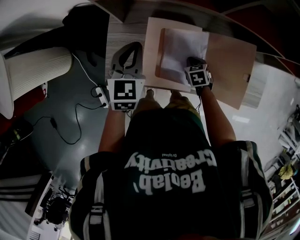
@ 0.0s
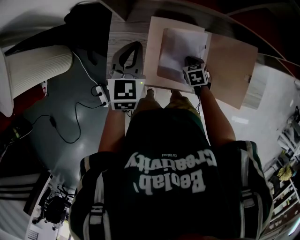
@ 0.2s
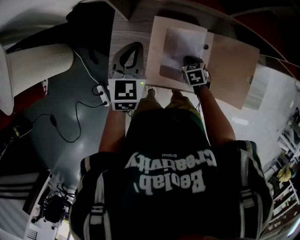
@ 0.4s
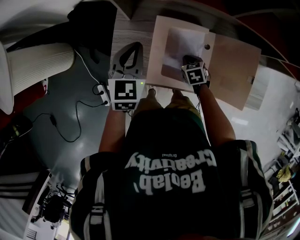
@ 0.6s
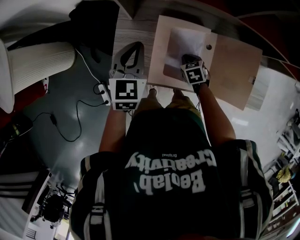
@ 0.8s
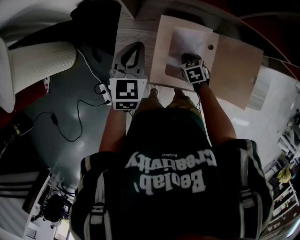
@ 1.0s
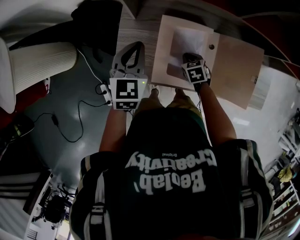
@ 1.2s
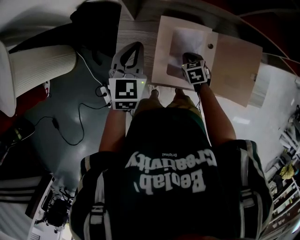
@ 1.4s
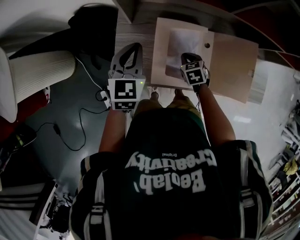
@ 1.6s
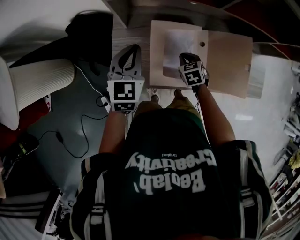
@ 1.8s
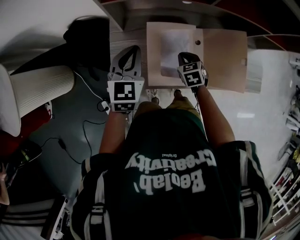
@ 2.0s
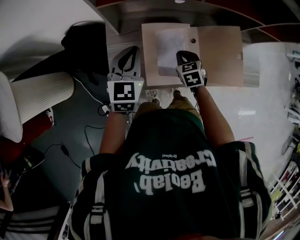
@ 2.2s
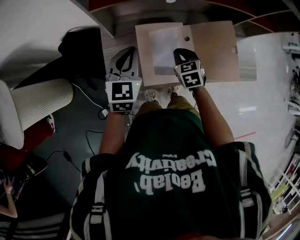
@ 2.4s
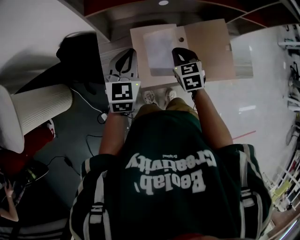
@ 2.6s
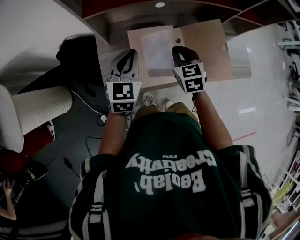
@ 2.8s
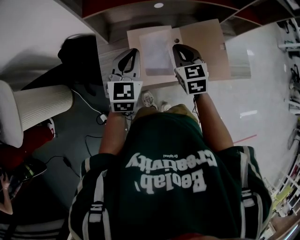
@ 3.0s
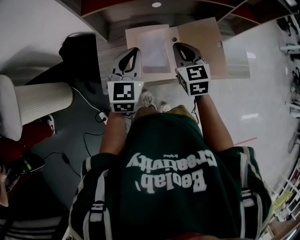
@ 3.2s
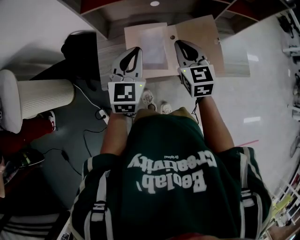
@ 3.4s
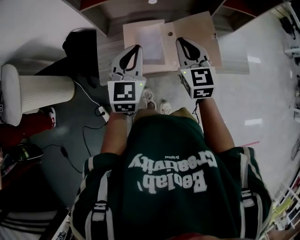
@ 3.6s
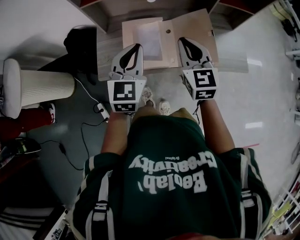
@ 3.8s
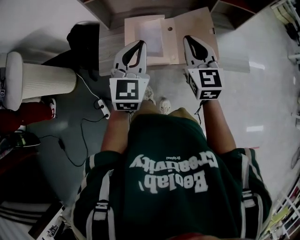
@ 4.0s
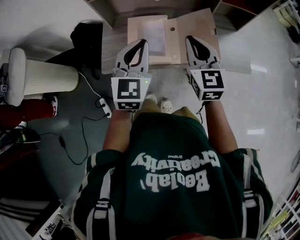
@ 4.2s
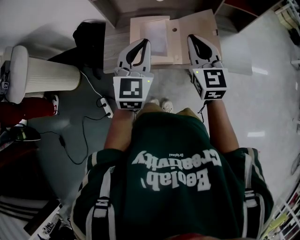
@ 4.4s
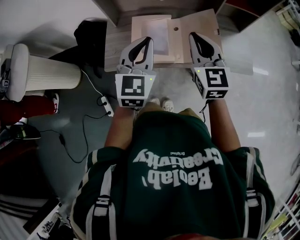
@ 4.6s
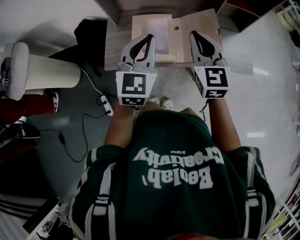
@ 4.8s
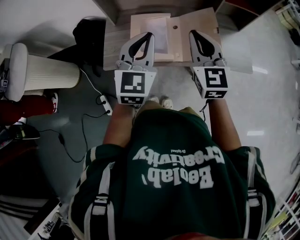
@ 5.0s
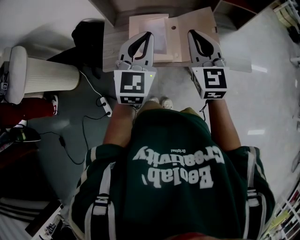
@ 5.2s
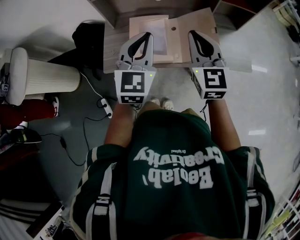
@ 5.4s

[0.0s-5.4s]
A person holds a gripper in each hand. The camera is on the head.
0.0s to 1.4s: The grippers both shift to the left by approximately 5 cm.
1.4s to 2.8s: The right gripper moves upward, some 20 cm, and turns by approximately 30 degrees, while the left gripper goes approximately 10 cm to the right and upward.
2.8s to 4.0s: The right gripper travels backward, upward and to the right by some 25 cm, and swivels roughly 30 degrees. Meanwhile the left gripper goes about 25 cm backward, to the right and upward.
4.0s to 5.4s: The right gripper moves about 5 cm.

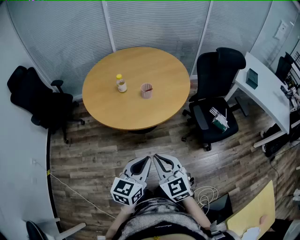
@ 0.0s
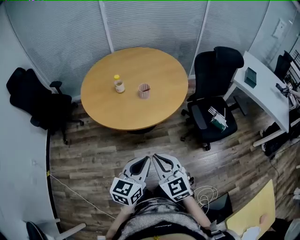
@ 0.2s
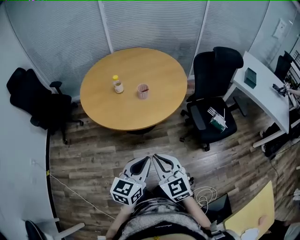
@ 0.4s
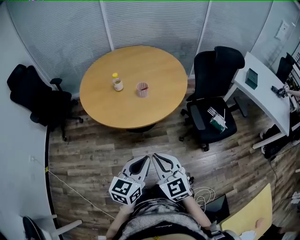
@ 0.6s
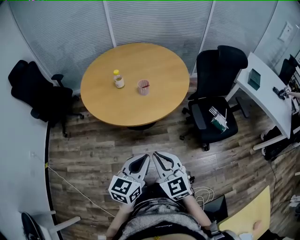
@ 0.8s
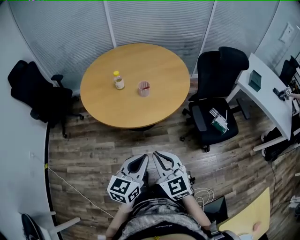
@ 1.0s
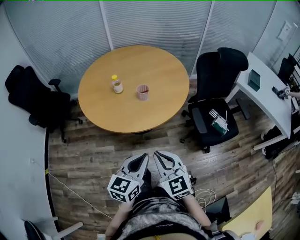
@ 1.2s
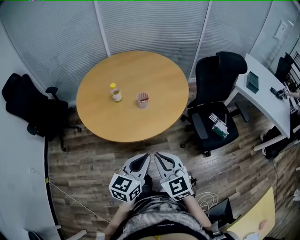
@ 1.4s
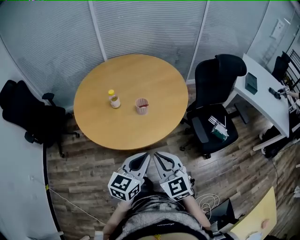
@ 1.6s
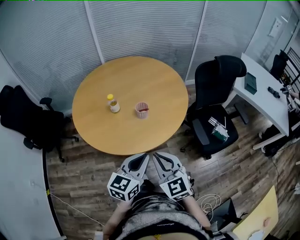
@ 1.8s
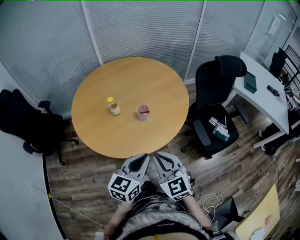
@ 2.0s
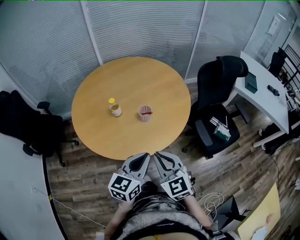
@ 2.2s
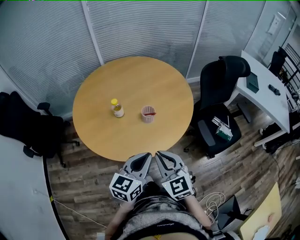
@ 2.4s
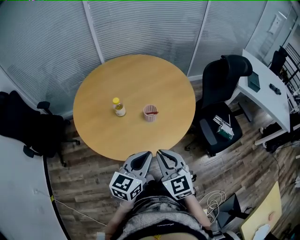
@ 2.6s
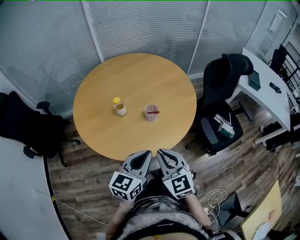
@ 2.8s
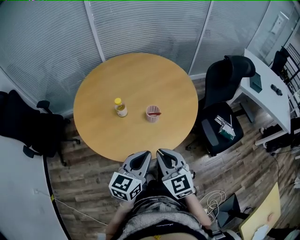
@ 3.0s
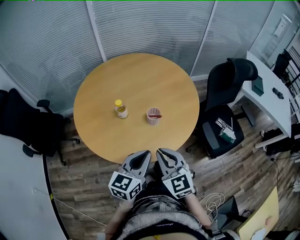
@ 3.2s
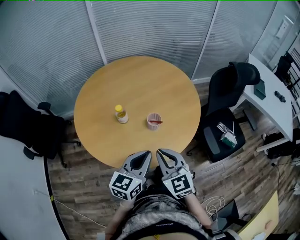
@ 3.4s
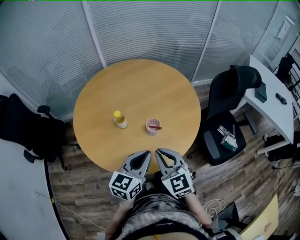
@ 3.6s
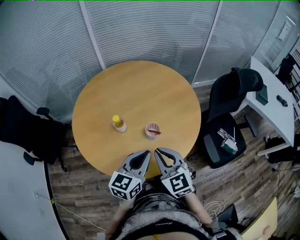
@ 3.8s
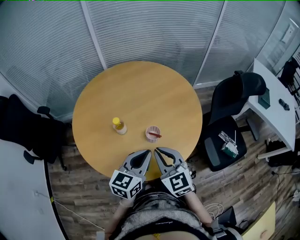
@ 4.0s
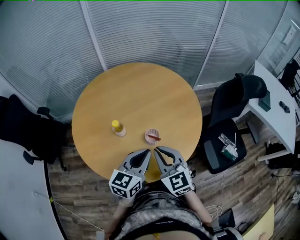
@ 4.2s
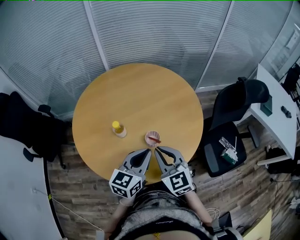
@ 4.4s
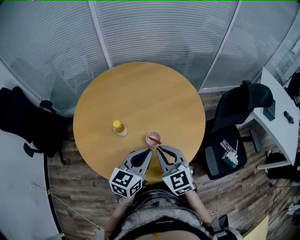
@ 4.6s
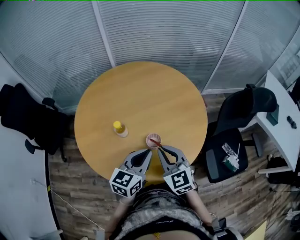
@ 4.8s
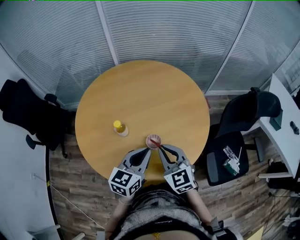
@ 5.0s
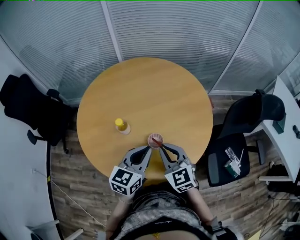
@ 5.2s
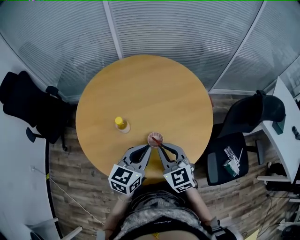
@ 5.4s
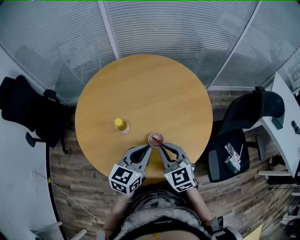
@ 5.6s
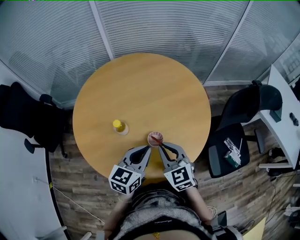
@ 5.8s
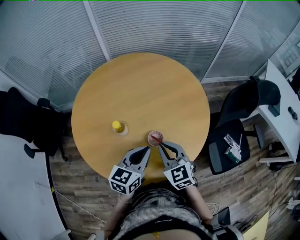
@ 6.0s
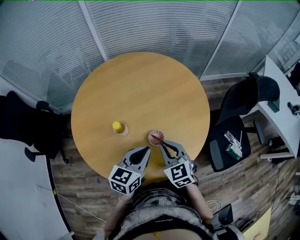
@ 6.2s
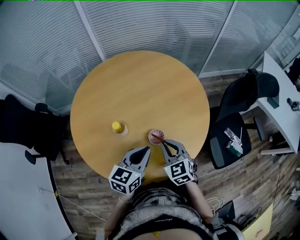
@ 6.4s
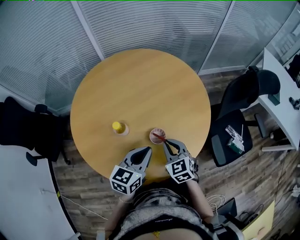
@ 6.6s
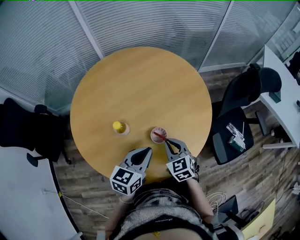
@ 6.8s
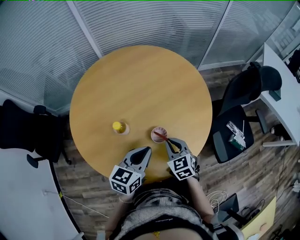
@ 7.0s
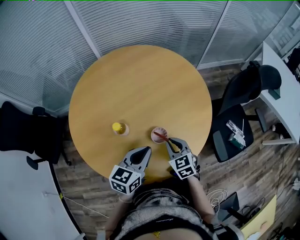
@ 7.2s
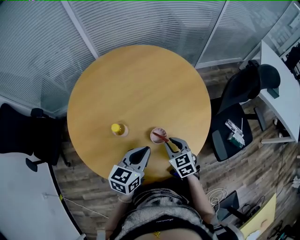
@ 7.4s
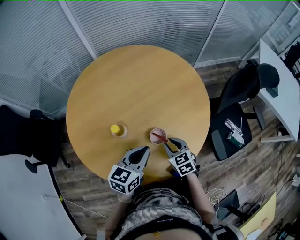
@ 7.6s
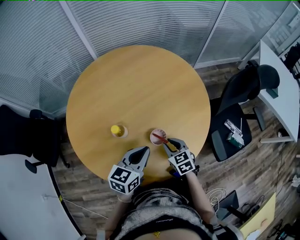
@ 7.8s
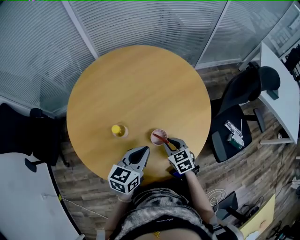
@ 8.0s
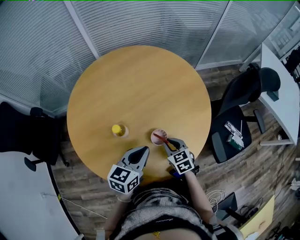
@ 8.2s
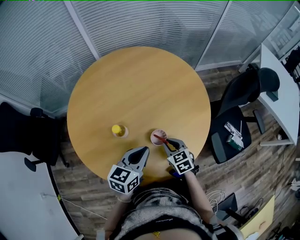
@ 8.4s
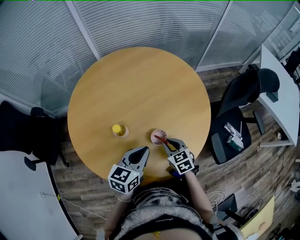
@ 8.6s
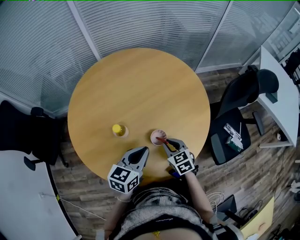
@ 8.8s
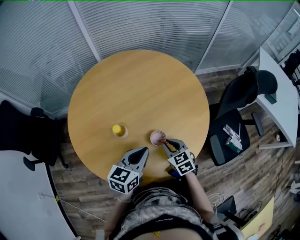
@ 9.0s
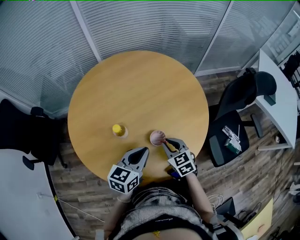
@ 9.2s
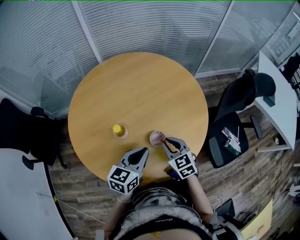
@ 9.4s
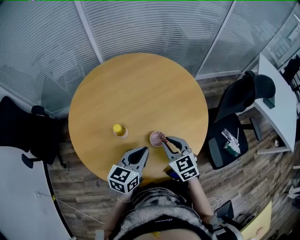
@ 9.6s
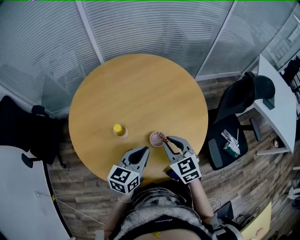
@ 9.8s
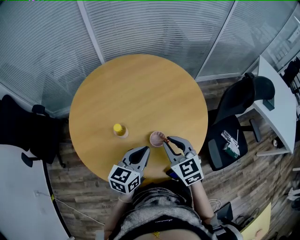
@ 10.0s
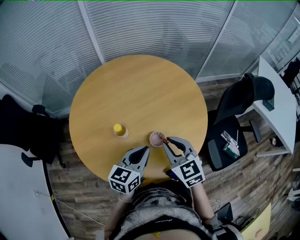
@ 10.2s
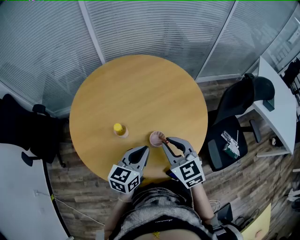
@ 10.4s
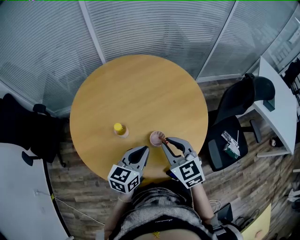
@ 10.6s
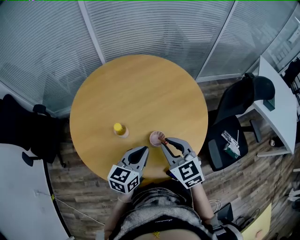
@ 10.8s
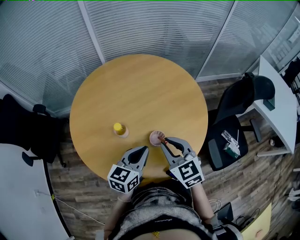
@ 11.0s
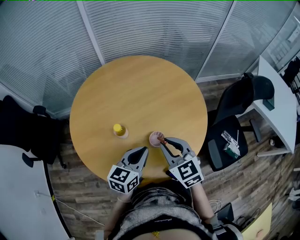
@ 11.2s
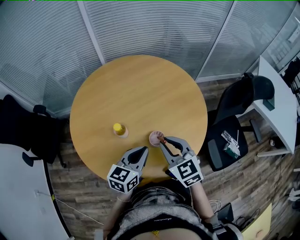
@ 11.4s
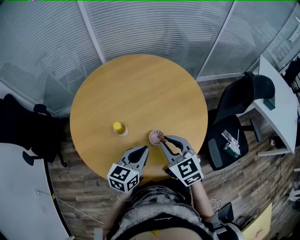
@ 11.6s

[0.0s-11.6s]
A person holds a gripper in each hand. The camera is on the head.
0.0s to 1.4s: Both grippers travel together forward, about 10 cm.
1.4s to 2.8s: Both grippers move forward and to the left, some 15 cm.
2.8s to 4.4s: Both grippers travel together forward, about 20 cm.
4.4s to 5.8s: The left gripper travels forward by roughly 5 cm, while the right gripper shifts approximately 10 cm forward and downward.
5.8s to 7.2s: The right gripper is displaced downward by roughly 10 cm.
7.2s to 8.8s: The grippers stay close to where they were, moving slightly.
8.8s to 10.2s: The right gripper moves upward, some 15 cm.
10.2s to 11.6s: Neither gripper changes place.

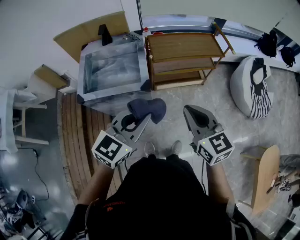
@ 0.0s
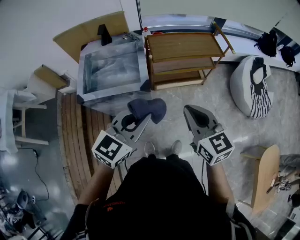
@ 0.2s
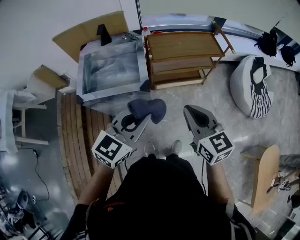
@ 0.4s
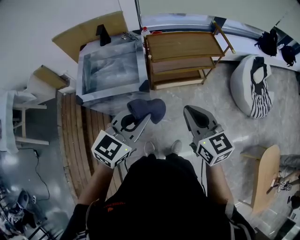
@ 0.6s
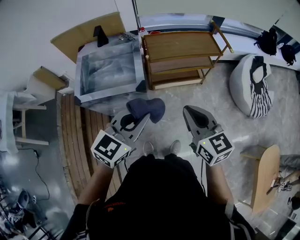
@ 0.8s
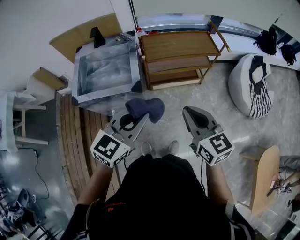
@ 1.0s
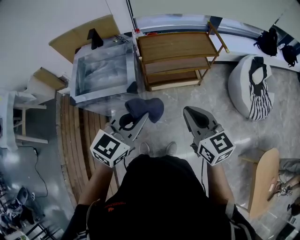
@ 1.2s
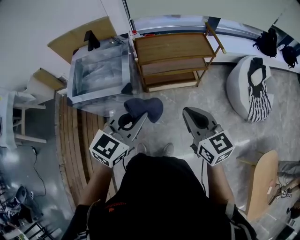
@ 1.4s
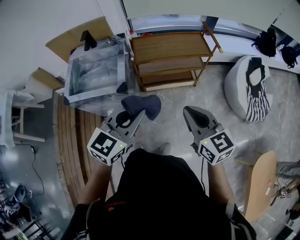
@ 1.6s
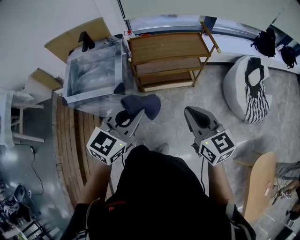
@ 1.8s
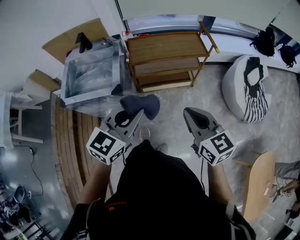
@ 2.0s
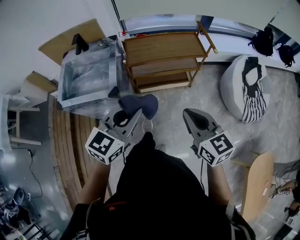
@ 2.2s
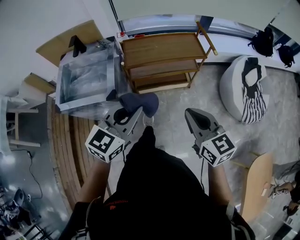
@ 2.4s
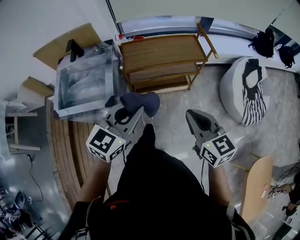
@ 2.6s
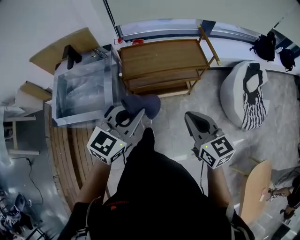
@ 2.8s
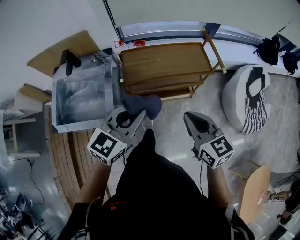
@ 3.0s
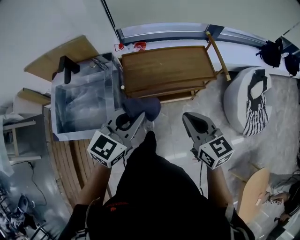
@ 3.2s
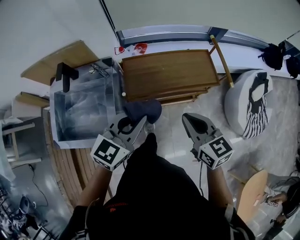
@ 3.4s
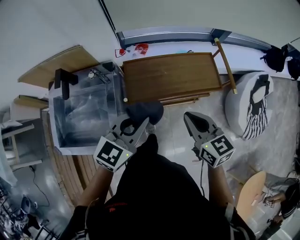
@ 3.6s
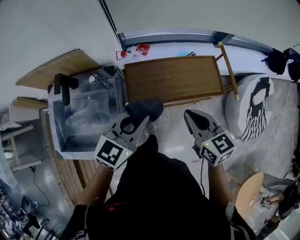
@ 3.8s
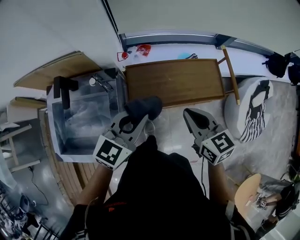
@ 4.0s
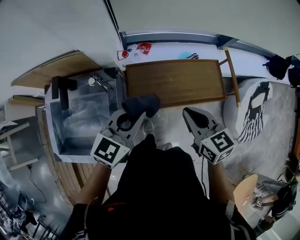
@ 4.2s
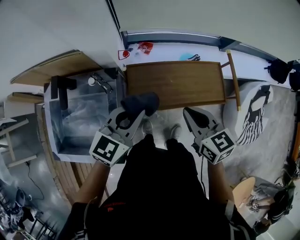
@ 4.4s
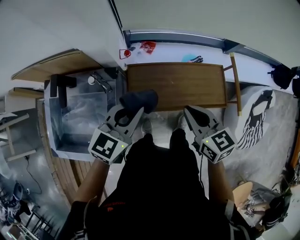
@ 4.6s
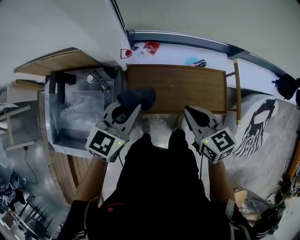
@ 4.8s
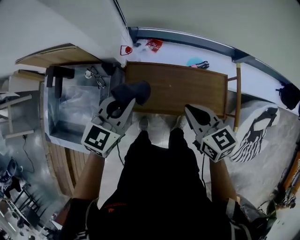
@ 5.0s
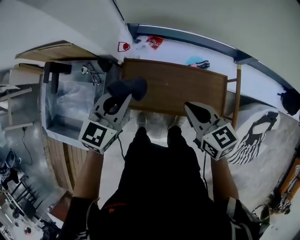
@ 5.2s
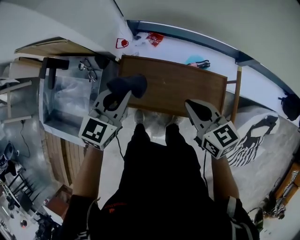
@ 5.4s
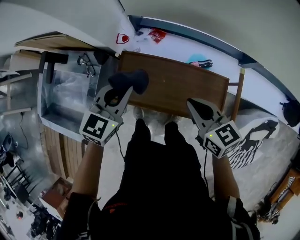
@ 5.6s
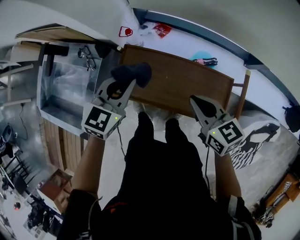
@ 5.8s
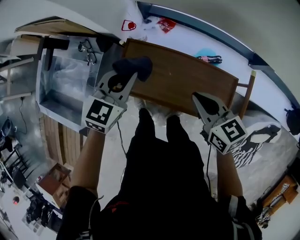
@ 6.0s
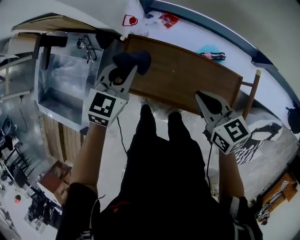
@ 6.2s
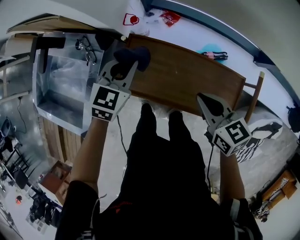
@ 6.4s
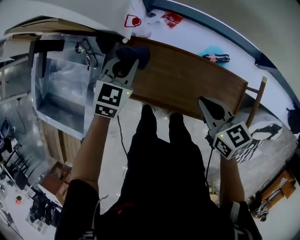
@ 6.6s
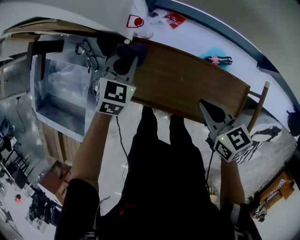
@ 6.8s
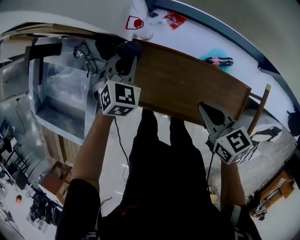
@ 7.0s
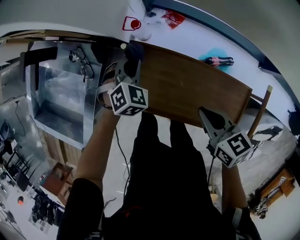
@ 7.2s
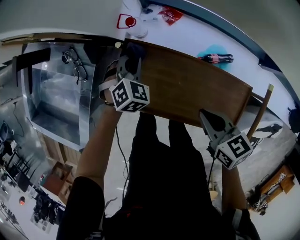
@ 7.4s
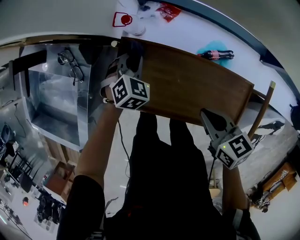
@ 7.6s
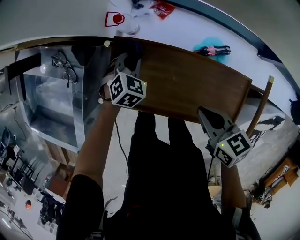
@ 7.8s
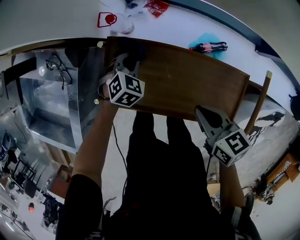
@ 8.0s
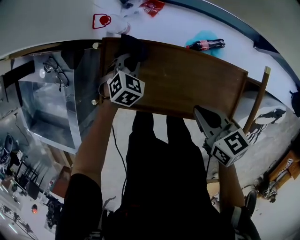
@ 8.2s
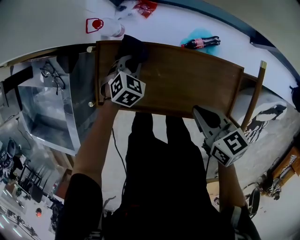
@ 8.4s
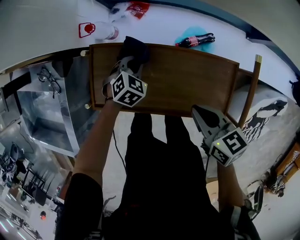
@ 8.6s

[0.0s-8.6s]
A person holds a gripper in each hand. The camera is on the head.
0.0s to 1.4s: Both grippers move to the right, some 15 cm.
1.4s to 2.8s: The right gripper is displaced forward and to the right by roughly 15 cm. Meanwhile the left gripper travels forward by approximately 15 cm.
2.8s to 4.4s: The two grippers go some 35 cm forward.
4.4s to 5.8s: The left gripper changes place by roughly 15 cm, and rotates about 20 degrees; the right gripper ends up some 20 cm from where it was, and swivels some 20 degrees.
5.8s to 7.2s: The left gripper heads downward and forward, covering about 25 cm, and rotates about 40 degrees. Meanwhile the right gripper moves downward, approximately 10 cm.
7.2s to 8.6s: The right gripper travels to the right and backward by some 10 cm. The left gripper goes roughly 20 cm to the right, downward and backward, and swivels about 20 degrees.
